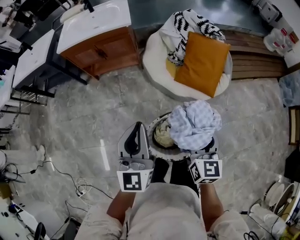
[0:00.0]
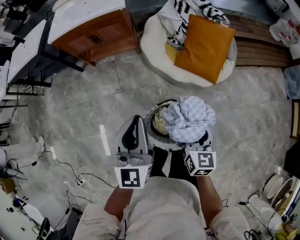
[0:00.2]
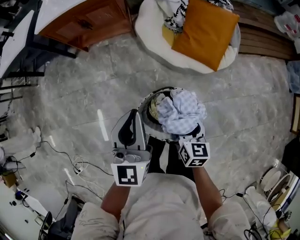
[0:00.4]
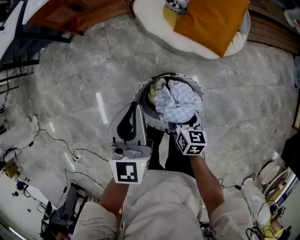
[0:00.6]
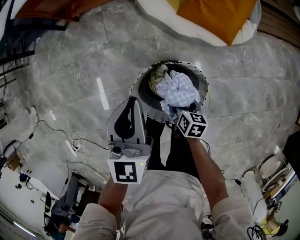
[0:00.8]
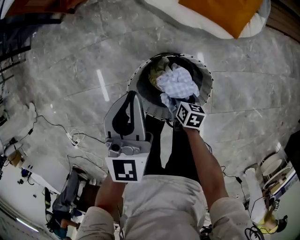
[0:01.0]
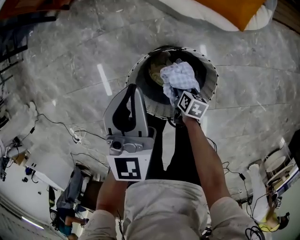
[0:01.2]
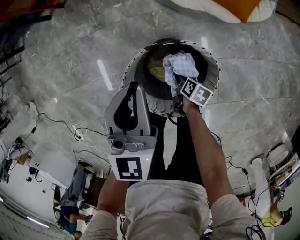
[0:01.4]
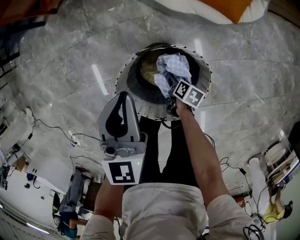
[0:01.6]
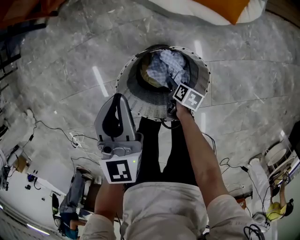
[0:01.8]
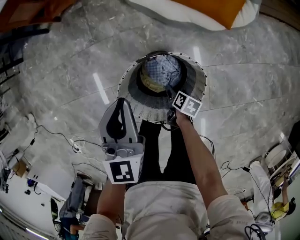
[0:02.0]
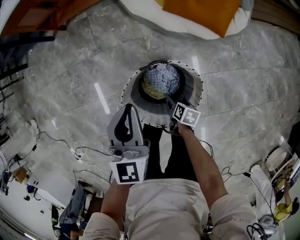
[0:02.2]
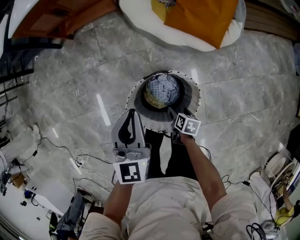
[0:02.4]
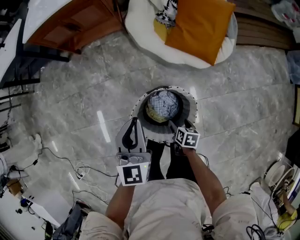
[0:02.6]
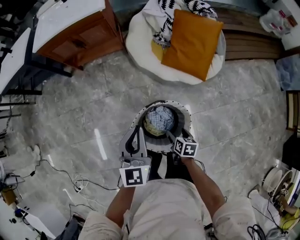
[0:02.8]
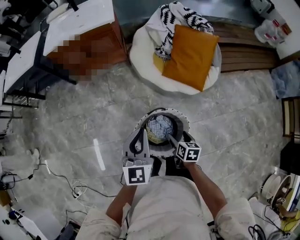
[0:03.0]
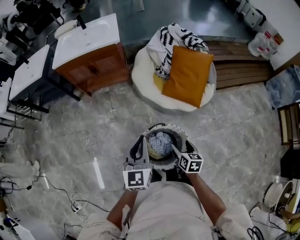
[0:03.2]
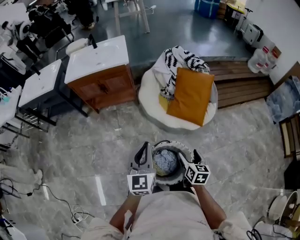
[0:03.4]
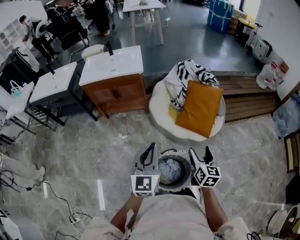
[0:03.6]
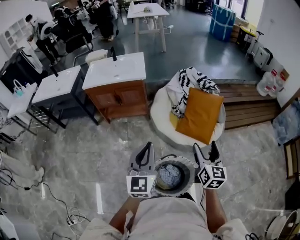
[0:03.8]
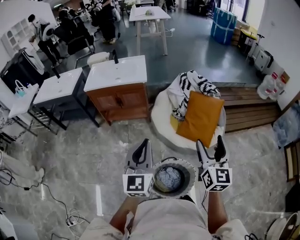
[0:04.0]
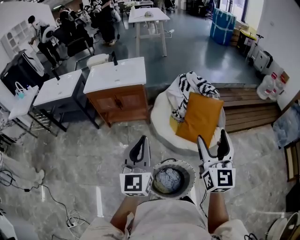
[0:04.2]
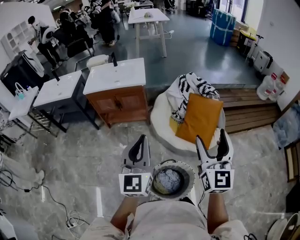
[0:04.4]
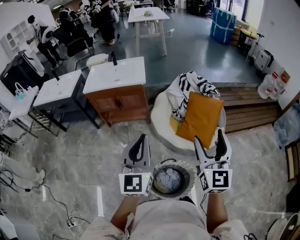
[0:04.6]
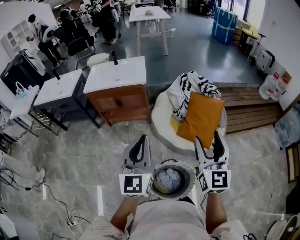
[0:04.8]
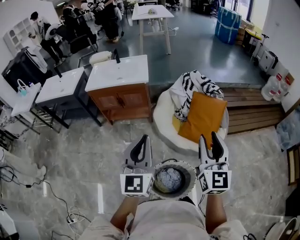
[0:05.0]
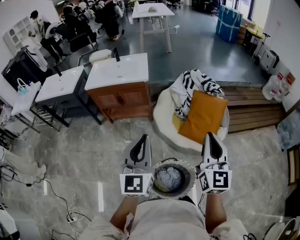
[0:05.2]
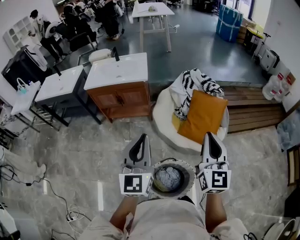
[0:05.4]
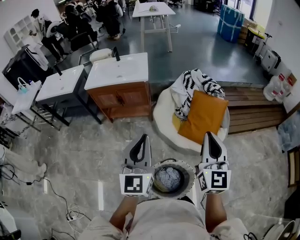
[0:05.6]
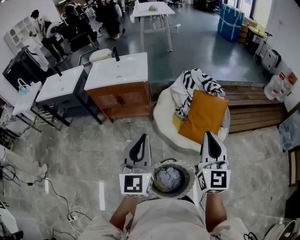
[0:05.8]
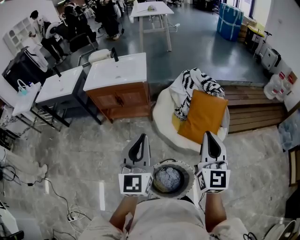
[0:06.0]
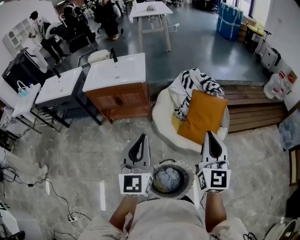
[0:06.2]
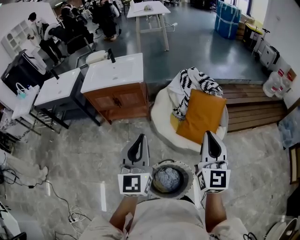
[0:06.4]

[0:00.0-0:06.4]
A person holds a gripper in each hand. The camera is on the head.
0:00.0 to 0:01.6: The left gripper is displaced downward by approximately 35 cm, and changes its angle by roughly 20 degrees. The right gripper heads downward, covering some 60 cm, and tilts its fingers roughly 40 degrees downward.
0:01.6 to 0:03.2: The left gripper is displaced upward by about 25 cm. Meanwhile the right gripper moves upward, roughly 40 cm, and turns by some 40 degrees.
0:03.2 to 0:04.8: The right gripper goes roughly 40 cm upward, and tips its fingers upward by roughly 50 degrees, while the left gripper goes approximately 20 cm upward.
0:04.8 to 0:06.4: The right gripper moves some 5 cm, and closes its fingers, while the left gripper ends up approximately 5 cm from where it was.

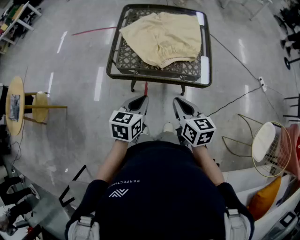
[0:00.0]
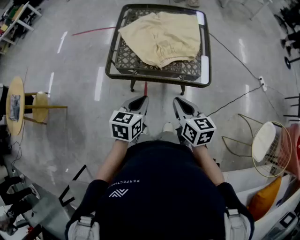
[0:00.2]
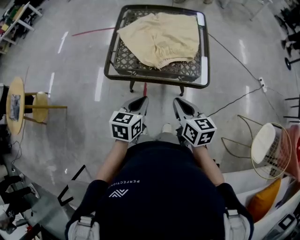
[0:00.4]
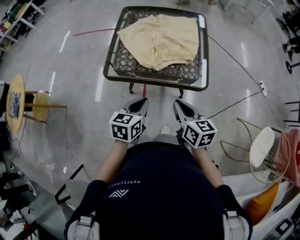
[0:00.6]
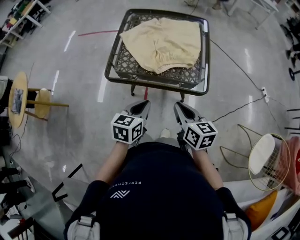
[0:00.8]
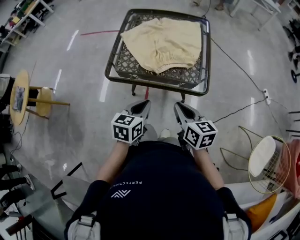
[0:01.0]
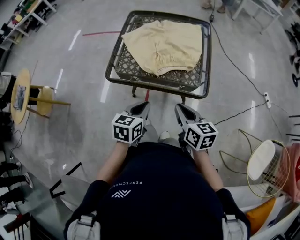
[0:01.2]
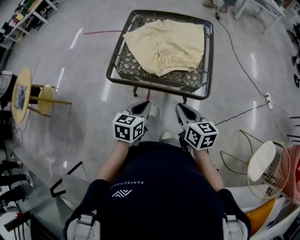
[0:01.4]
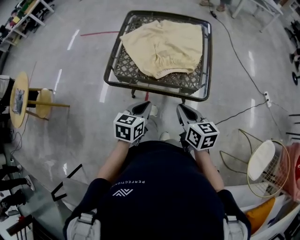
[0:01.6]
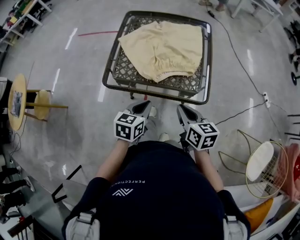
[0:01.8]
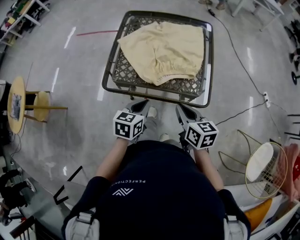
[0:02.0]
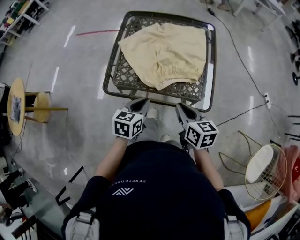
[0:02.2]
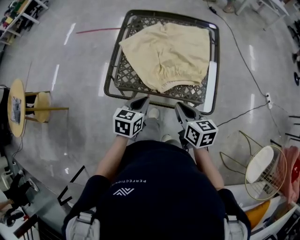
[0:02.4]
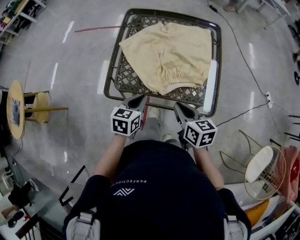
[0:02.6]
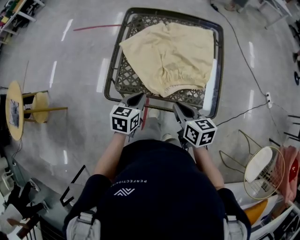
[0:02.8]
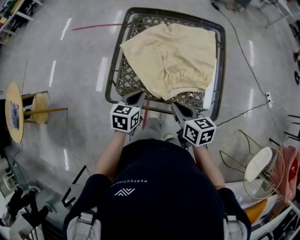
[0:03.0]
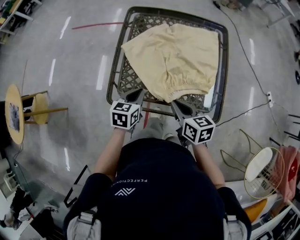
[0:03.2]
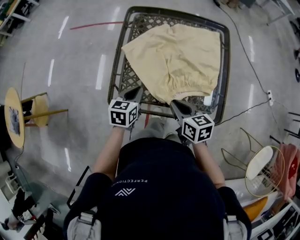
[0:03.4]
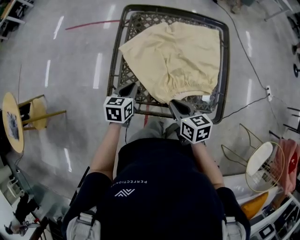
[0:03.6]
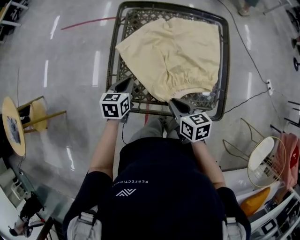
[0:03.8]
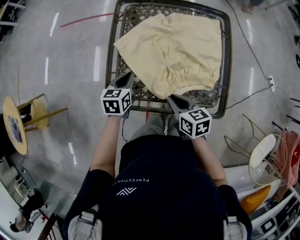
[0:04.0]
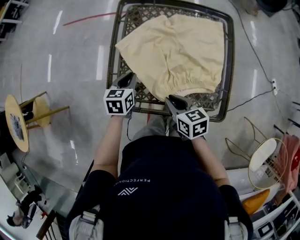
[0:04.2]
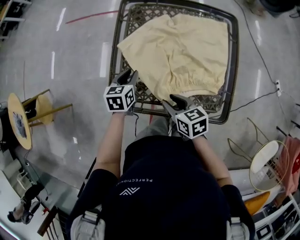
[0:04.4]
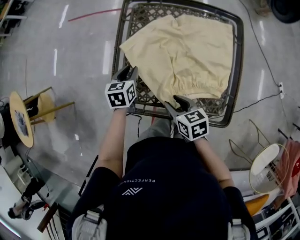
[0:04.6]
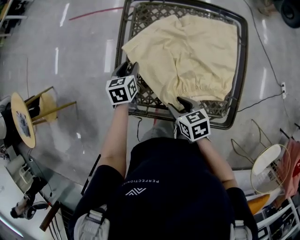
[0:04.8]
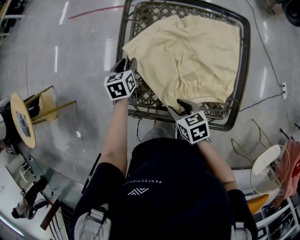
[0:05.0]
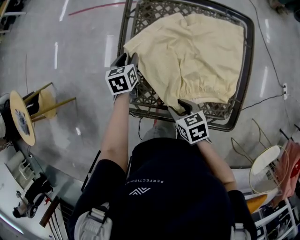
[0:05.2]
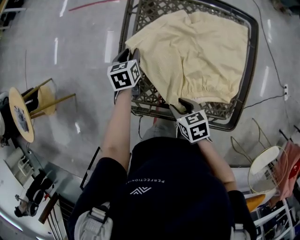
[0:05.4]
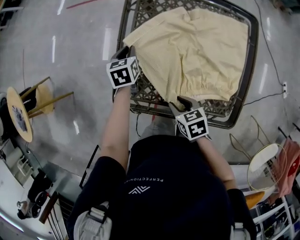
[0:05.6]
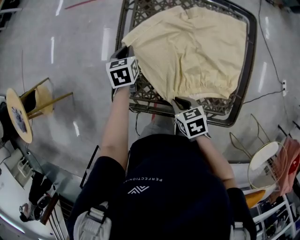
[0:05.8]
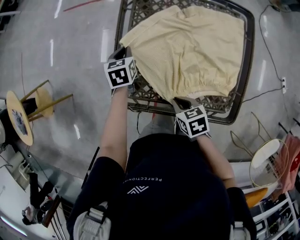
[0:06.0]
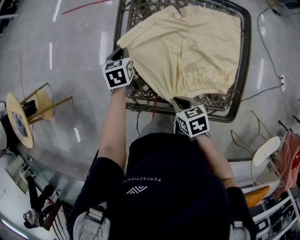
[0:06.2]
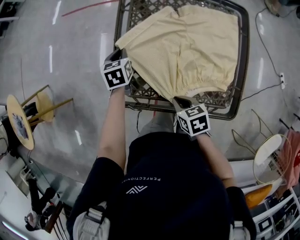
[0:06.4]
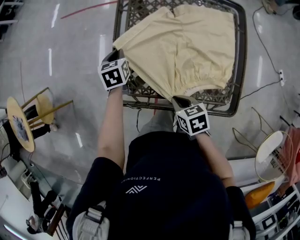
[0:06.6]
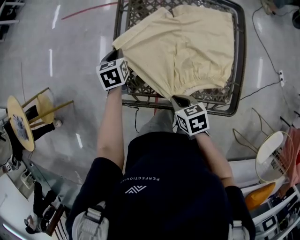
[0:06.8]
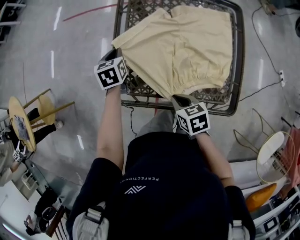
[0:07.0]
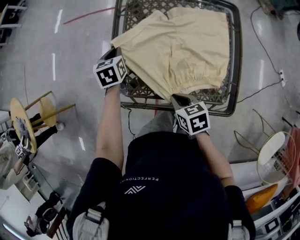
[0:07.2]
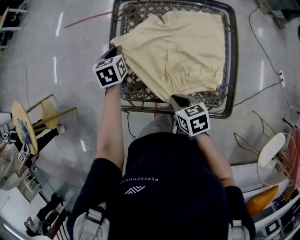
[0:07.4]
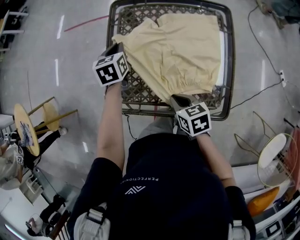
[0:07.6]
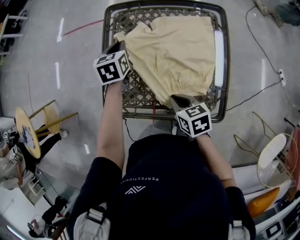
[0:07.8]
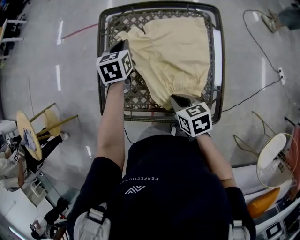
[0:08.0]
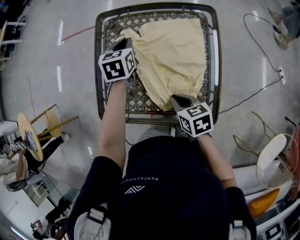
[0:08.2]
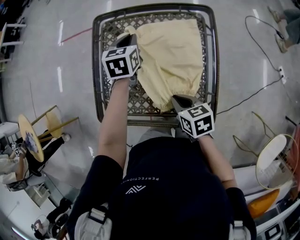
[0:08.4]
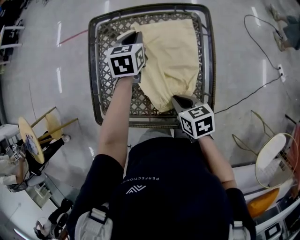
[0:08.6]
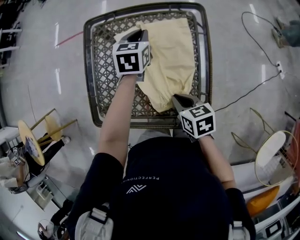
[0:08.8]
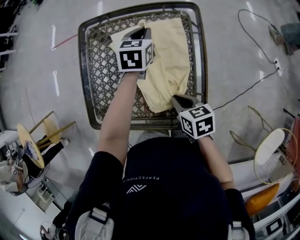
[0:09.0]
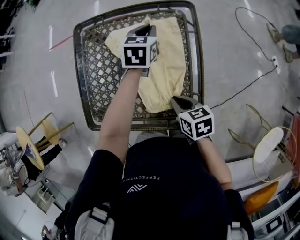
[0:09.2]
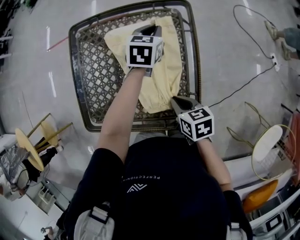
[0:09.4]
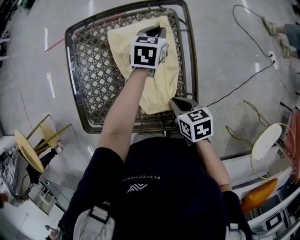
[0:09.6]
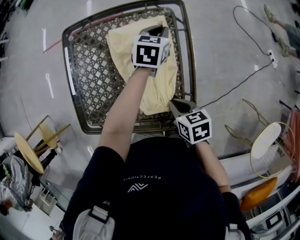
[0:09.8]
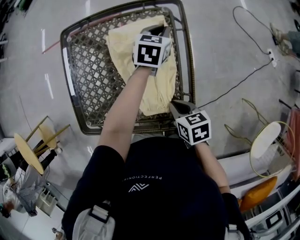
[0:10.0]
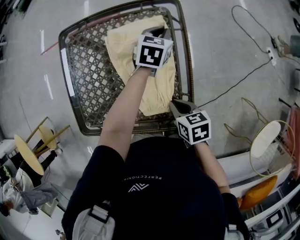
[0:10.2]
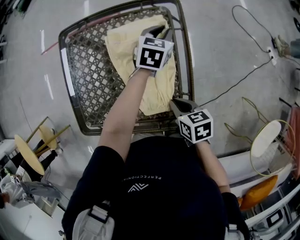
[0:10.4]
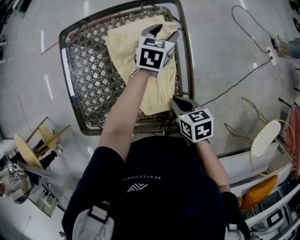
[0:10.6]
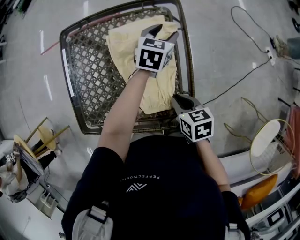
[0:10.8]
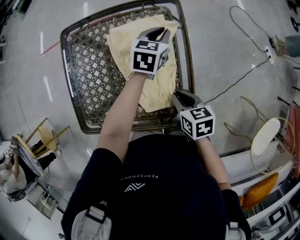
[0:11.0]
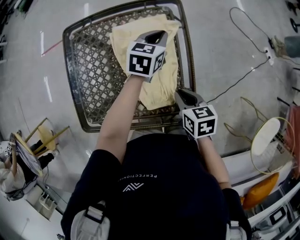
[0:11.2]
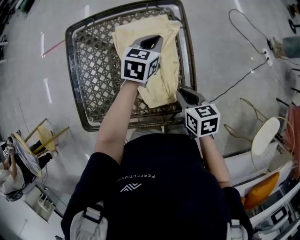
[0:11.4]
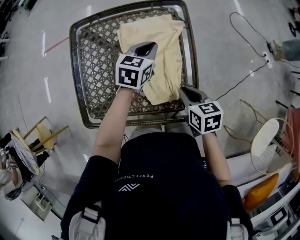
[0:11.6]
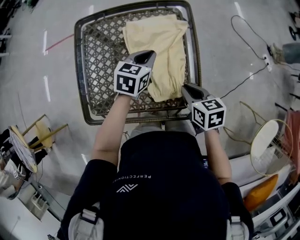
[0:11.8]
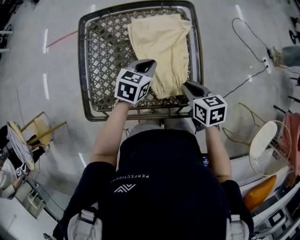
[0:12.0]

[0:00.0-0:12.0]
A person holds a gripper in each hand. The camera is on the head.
0:00.0 to 0:01.6: Both grippers travel together to the right, about 5 cm.
0:01.6 to 0:03.0: Both grippers move forward and to the left, approximately 20 cm.
0:03.0 to 0:04.4: The left gripper is displaced forward by roughly 15 cm, while the right gripper goes some 10 cm forward, to the left and downward, and opens its fingers.
0:04.4 to 0:06.0: The right gripper goes roughly 5 cm downward, and closes its fingers; the left gripper heads forward, covering some 10 cm.
0:06.0 to 0:07.6: The left gripper goes roughly 10 cm upward and to the right. Meanwhile the right gripper is displaced to the right by about 5 cm.
0:07.6 to 0:09.0: The right gripper shifts roughly 15 cm to the right. Meanwhile the left gripper heads to the right, covering some 30 cm, and swivels approximately 20 degrees.
0:09.0 to 0:10.4: The left gripper goes about 15 cm to the right; the right gripper goes about 5 cm to the right.
0:10.4 to 0:12.0: The left gripper heads backward and to the left, covering approximately 25 cm, and opens, then closes again.

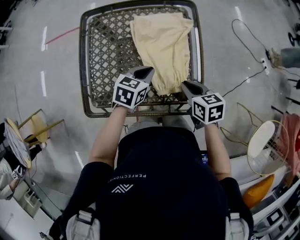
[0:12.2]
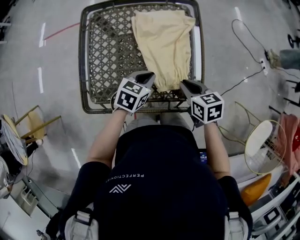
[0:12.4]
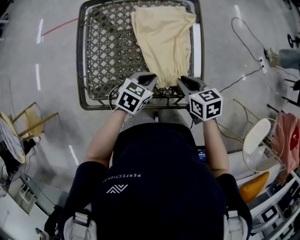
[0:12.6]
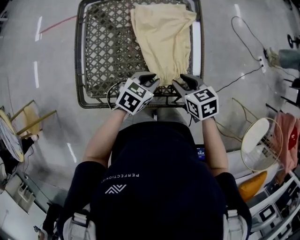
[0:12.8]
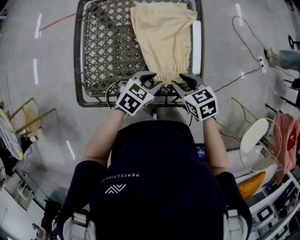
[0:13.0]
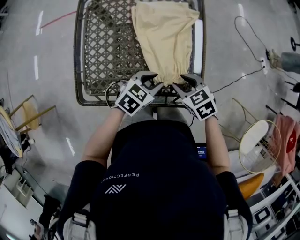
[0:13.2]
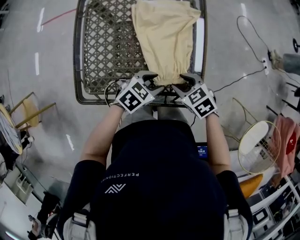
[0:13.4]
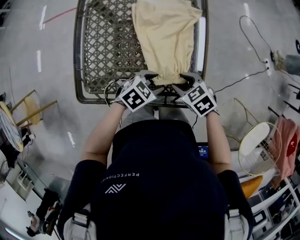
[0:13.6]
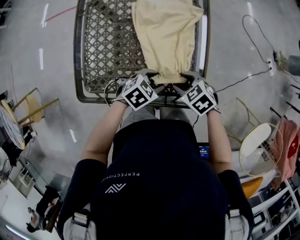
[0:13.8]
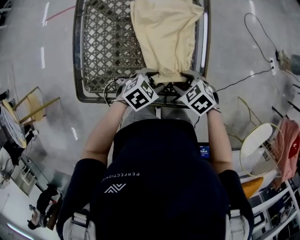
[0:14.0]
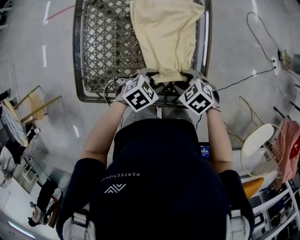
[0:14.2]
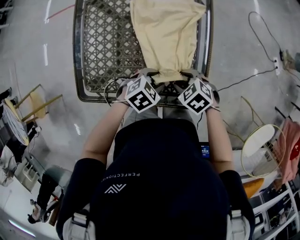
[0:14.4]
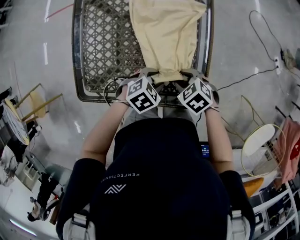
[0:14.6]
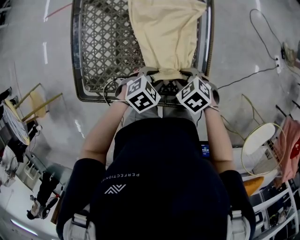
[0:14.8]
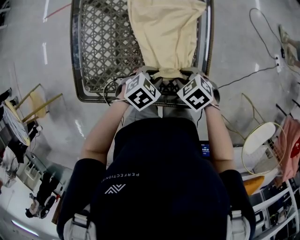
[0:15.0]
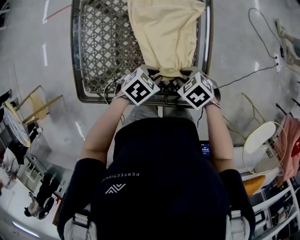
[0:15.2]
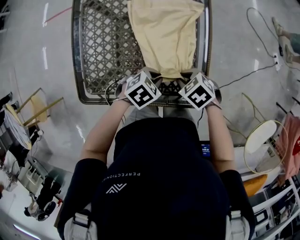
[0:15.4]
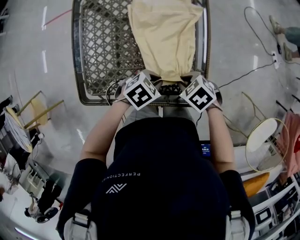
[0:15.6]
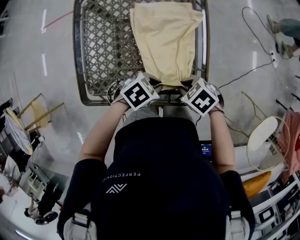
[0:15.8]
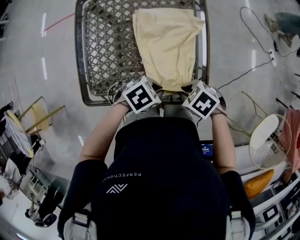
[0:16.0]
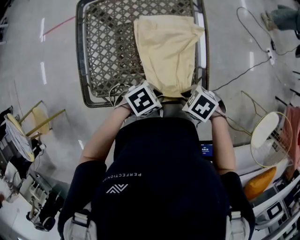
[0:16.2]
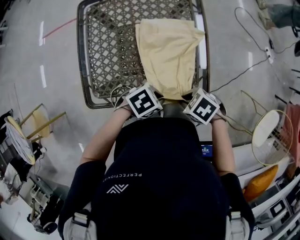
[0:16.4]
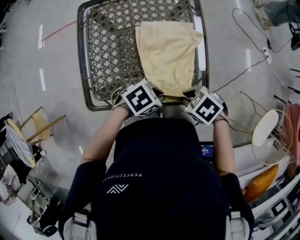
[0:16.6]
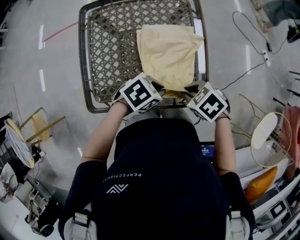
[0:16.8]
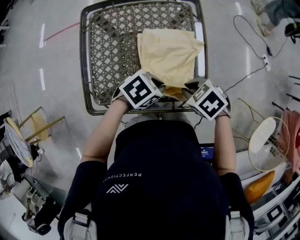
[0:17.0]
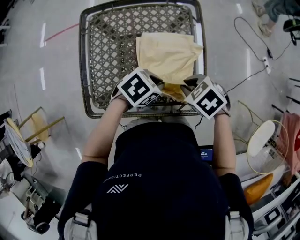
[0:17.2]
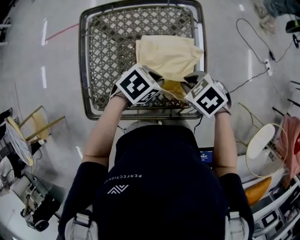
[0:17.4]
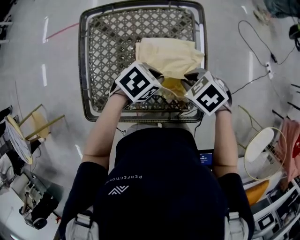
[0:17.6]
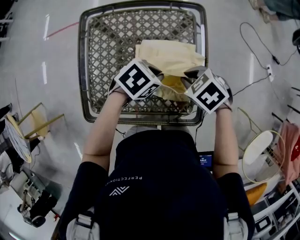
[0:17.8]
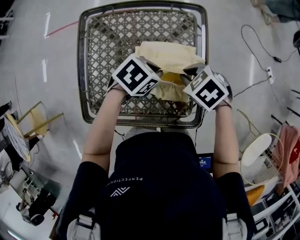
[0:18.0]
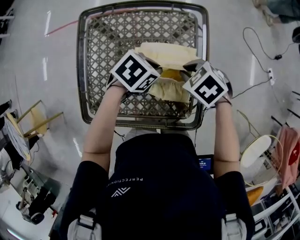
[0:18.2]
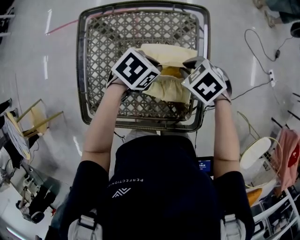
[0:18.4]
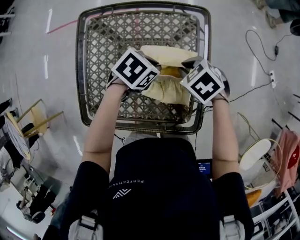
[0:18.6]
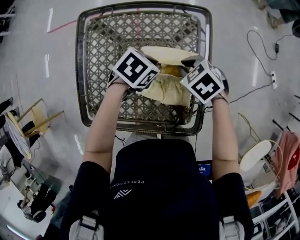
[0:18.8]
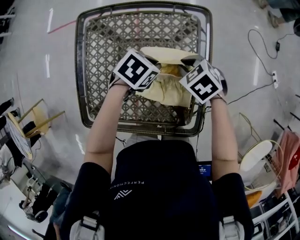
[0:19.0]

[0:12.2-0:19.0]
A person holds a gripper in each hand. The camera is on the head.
0:12.2 to 0:13.6: The right gripper is displaced downward by about 5 cm, changes its angle by roughly 40 degrees, and opens. The left gripper shifts by some 10 cm, changes its angle by approximately 30 degrees, and opens.
0:13.6 to 0:15.0: The left gripper closes.
0:15.0 to 0:16.2: The left gripper ends up about 10 cm from where it was, and rotates some 20 degrees. Meanwhile the right gripper changes place by approximately 10 cm.
0:16.2 to 0:17.6: The left gripper changes place by approximately 20 cm. Meanwhile the right gripper moves some 20 cm.
0:17.6 to 0:19.0: The left gripper shifts by about 10 cm. The right gripper moves roughly 15 cm.
